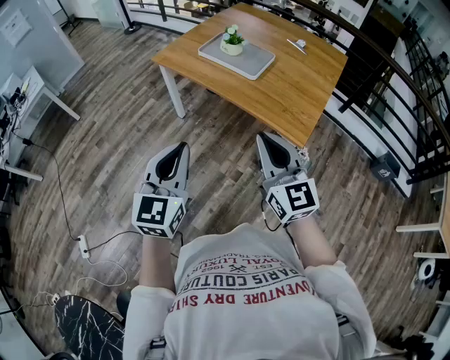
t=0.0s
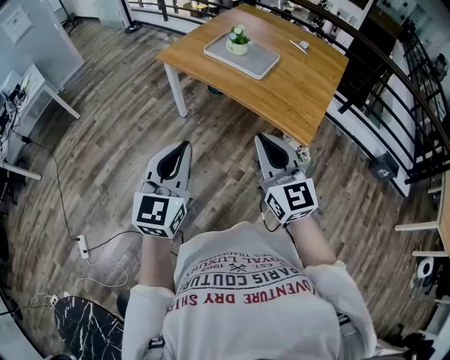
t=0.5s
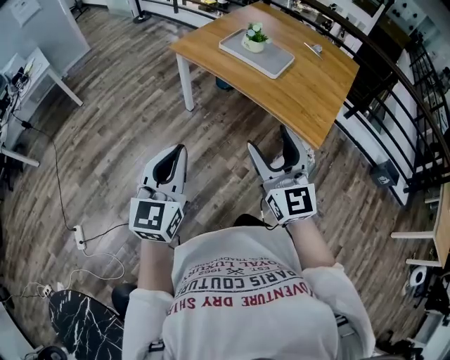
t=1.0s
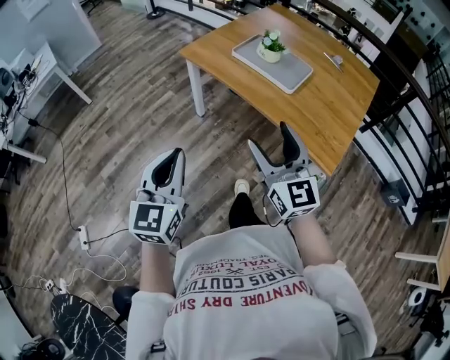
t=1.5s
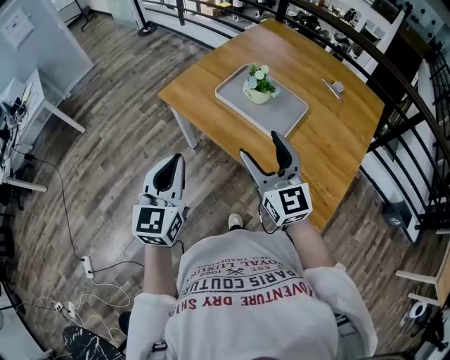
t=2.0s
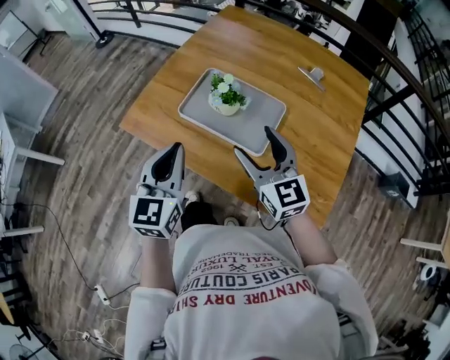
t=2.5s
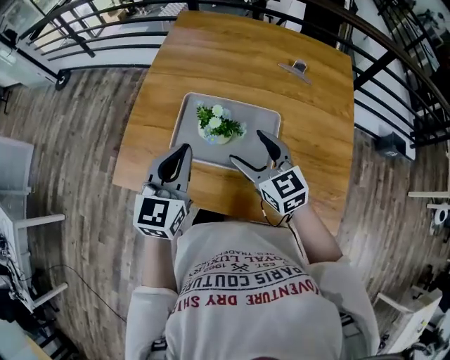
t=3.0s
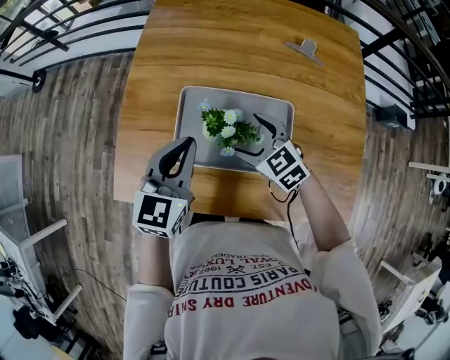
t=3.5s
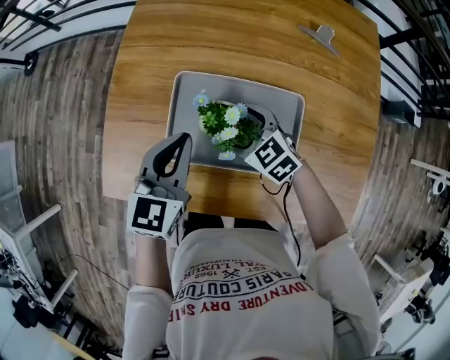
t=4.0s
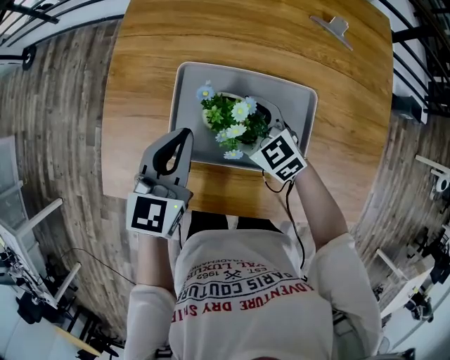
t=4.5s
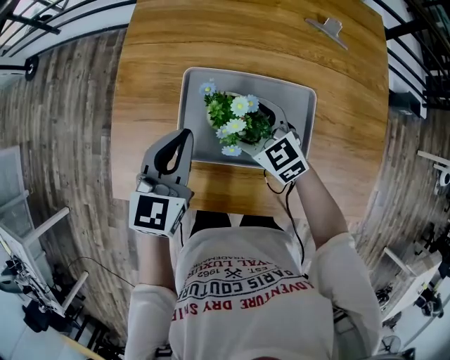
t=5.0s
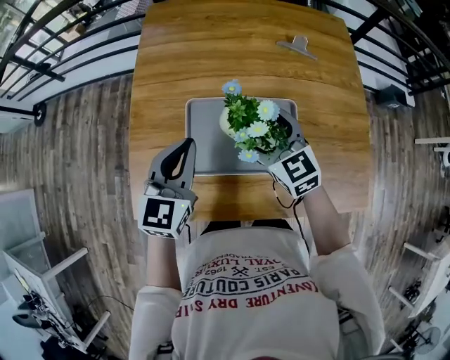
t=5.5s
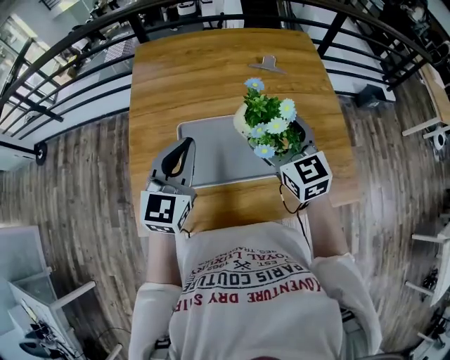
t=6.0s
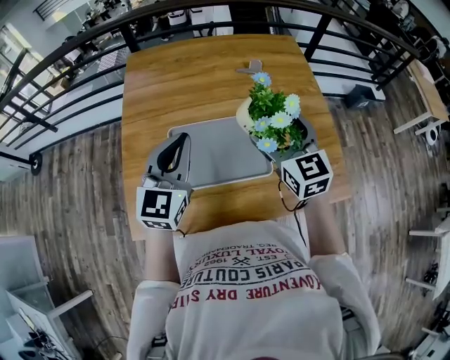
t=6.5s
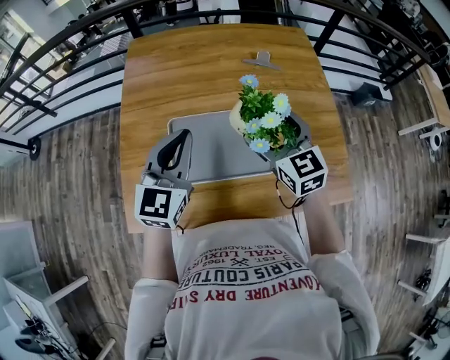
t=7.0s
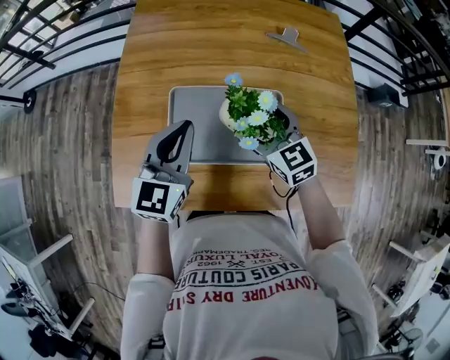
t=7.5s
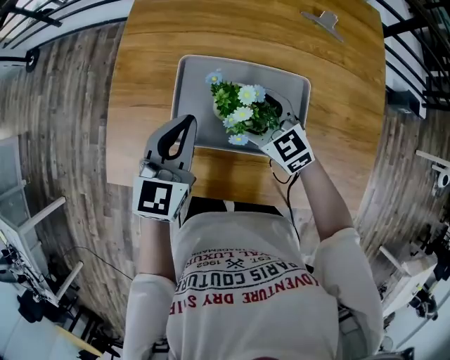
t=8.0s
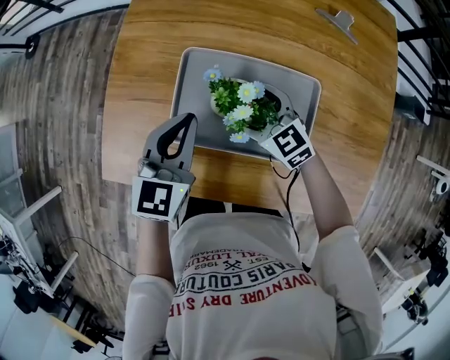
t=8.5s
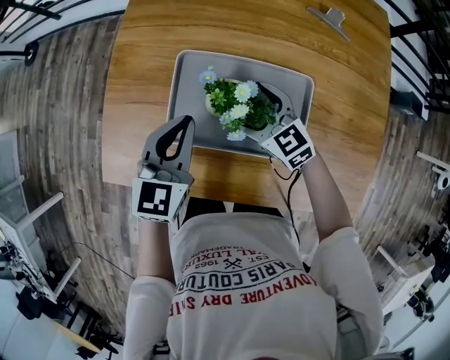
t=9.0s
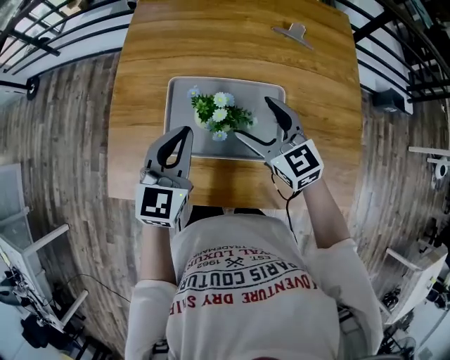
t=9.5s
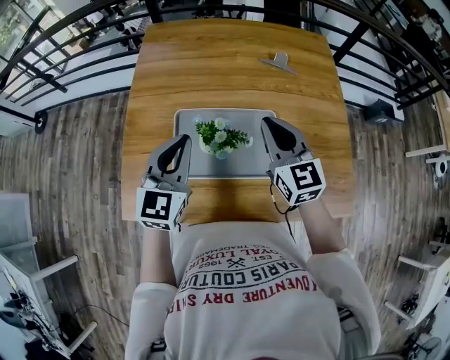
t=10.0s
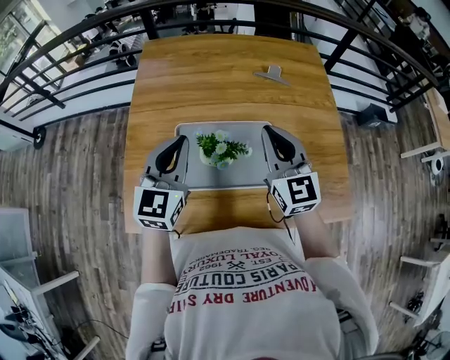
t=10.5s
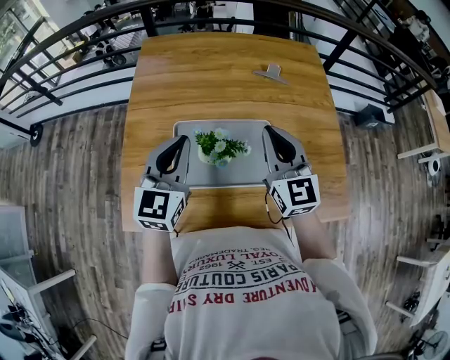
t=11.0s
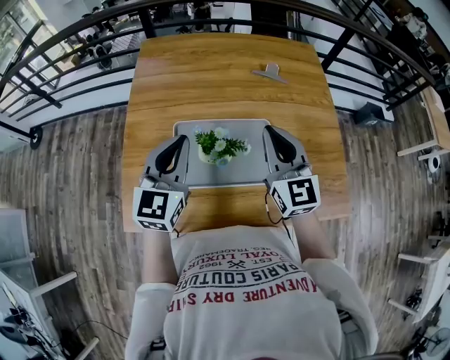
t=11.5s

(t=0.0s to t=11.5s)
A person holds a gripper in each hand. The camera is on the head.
t=0.0s - t=2.0s: Both grippers move forward, roughly 30 cm. The right gripper opens up.
t=2.0s - t=4.0s: The left gripper ends up roughly 40 cm from where it was, and turns by approximately 40 degrees, while the right gripper moves approximately 40 cm, and points its fingers some 40 degrees further downward.
t=4.0s - t=6.0s: The right gripper is displaced upward by approximately 20 cm, and turns by some 50 degrees. The left gripper shifts roughly 10 cm upward, and rotates about 20 degrees.
t=6.0s - t=7.5s: The right gripper goes approximately 10 cm downward. The left gripper goes approximately 5 cm downward.
t=7.5s - t=9.5s: The right gripper travels downward and back again, about 10 cm each way.
t=9.5s - t=11.5s: Both grippers travel together upward, roughly 10 cm. The right gripper swivels about 30 degrees, and closes up.

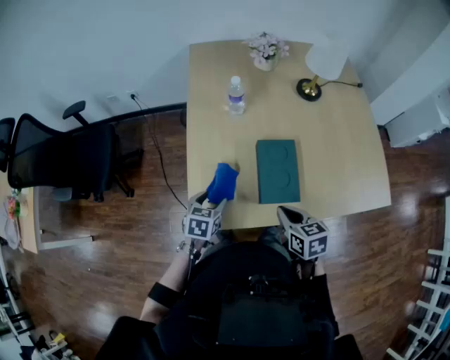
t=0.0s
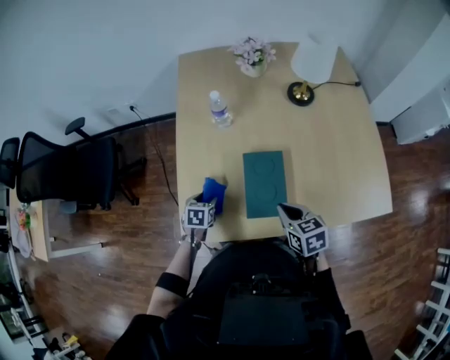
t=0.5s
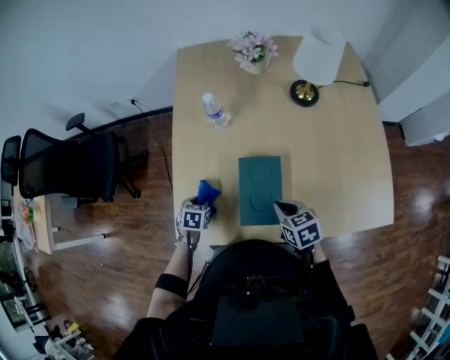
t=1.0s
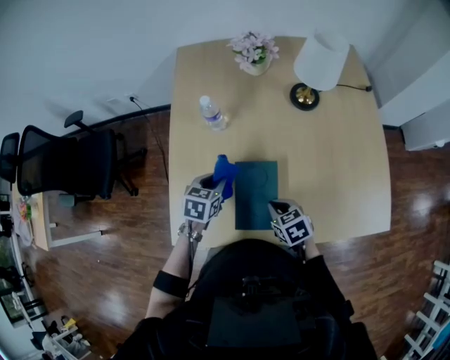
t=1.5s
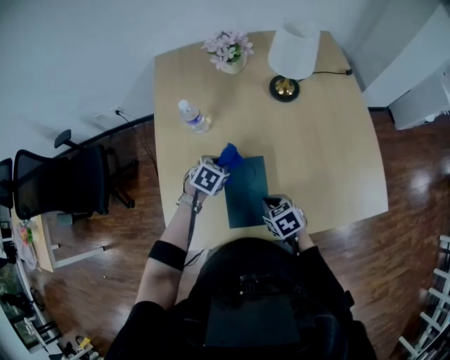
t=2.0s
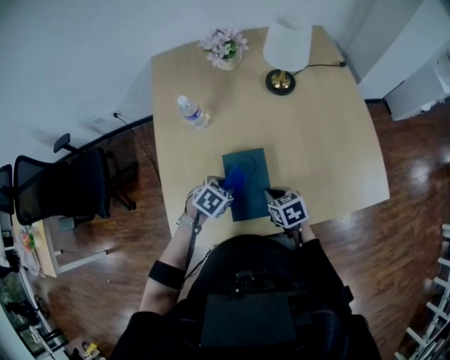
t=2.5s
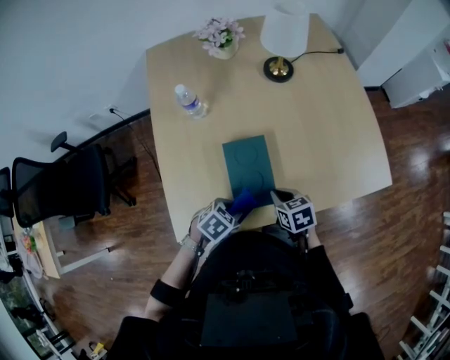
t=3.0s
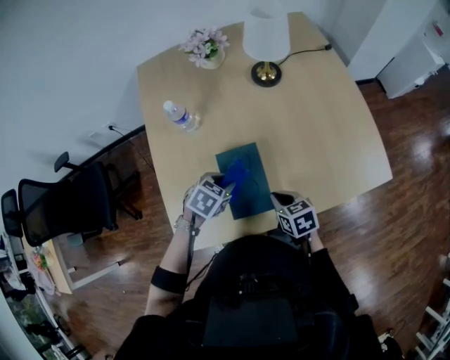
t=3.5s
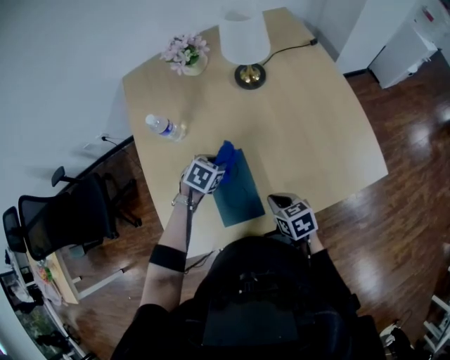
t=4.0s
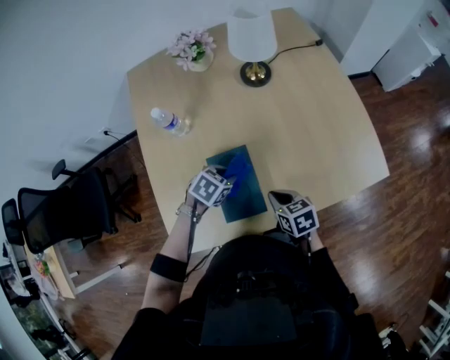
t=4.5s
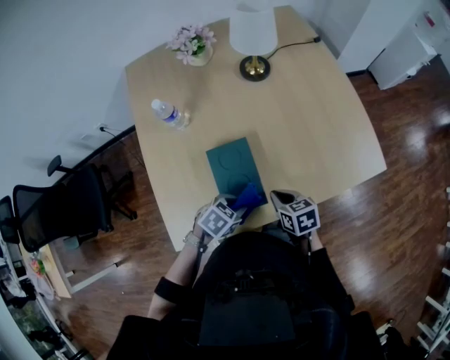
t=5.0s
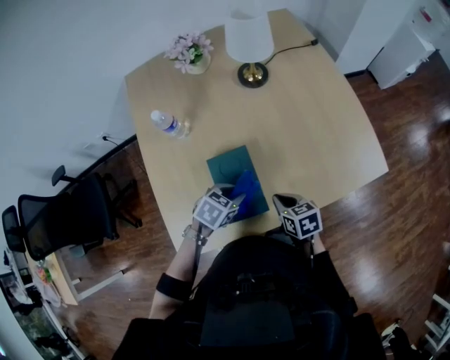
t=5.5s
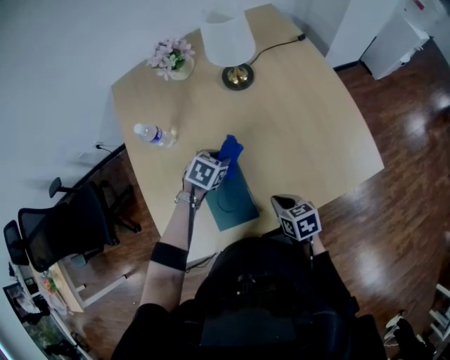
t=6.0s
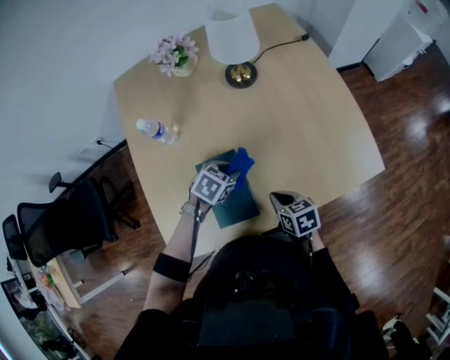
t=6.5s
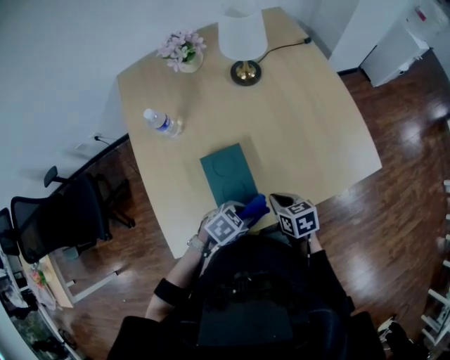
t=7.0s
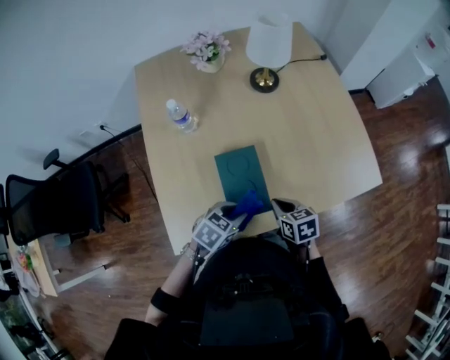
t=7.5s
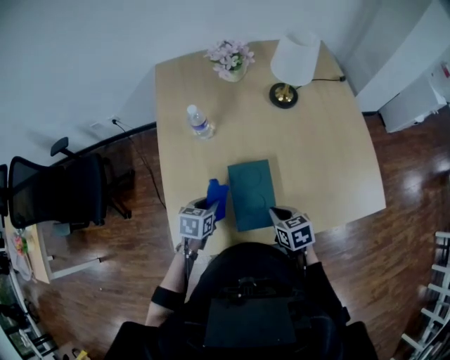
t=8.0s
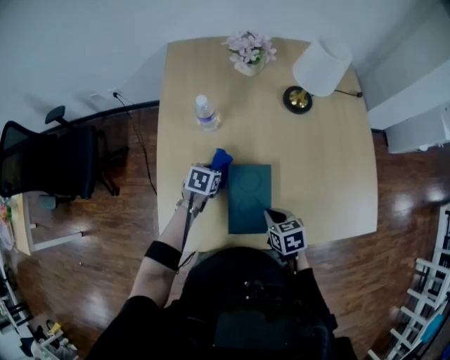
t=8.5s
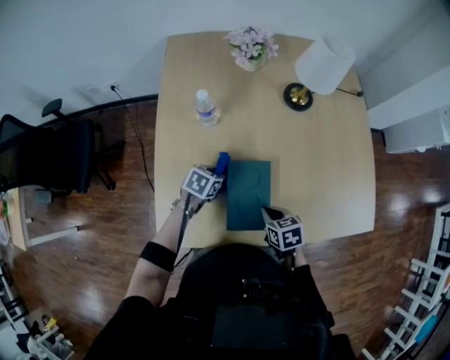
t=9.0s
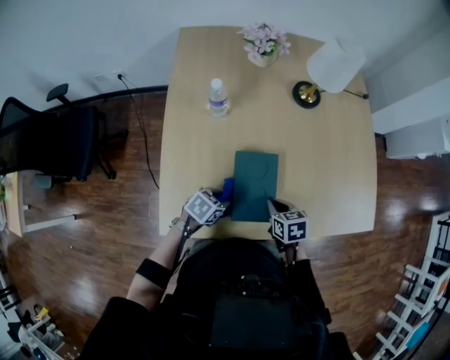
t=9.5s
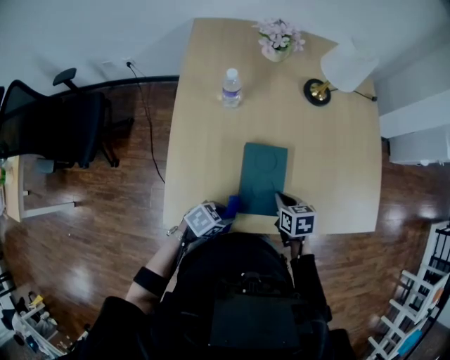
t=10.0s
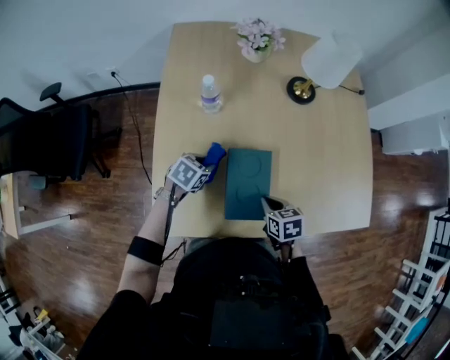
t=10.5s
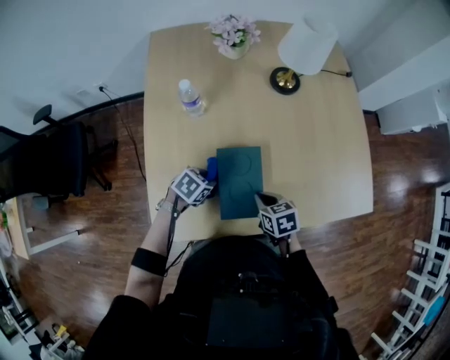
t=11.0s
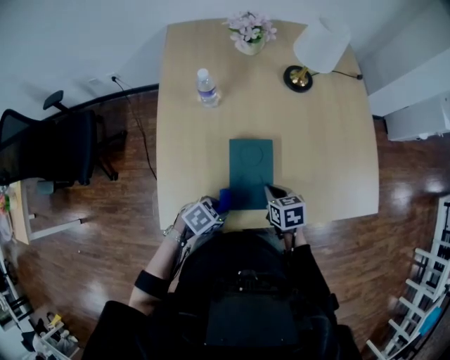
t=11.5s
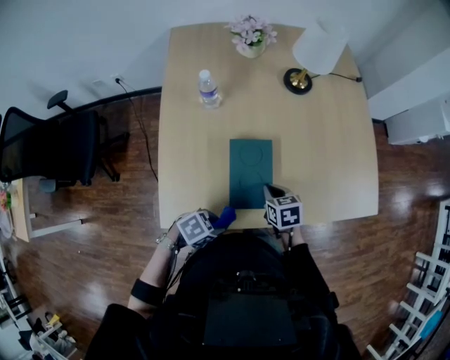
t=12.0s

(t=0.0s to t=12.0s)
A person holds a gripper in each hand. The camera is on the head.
t=0.0s - t=2.0s: The right gripper goes about 15 cm to the right, forward and downward, and rotates approximately 20 degrees; the left gripper heads to the right and forward, covering roughly 25 cm, turns by some 30 degrees, and closes its fingers.
t=2.0s - t=4.0s: The right gripper changes place by some 5 cm, and swivels some 20 degrees.
t=4.0s - t=6.0s: The left gripper travels backward and back again, approximately 20 cm each way.
t=6.0s - t=8.0s: The right gripper ends up approximately 10 cm from where it was; the left gripper moves roughly 20 cm, and swivels approximately 40 degrees.
t=8.0s - t=10.0s: The left gripper moves backward and to the right, approximately 15 cm, and swivels roughly 30 degrees.

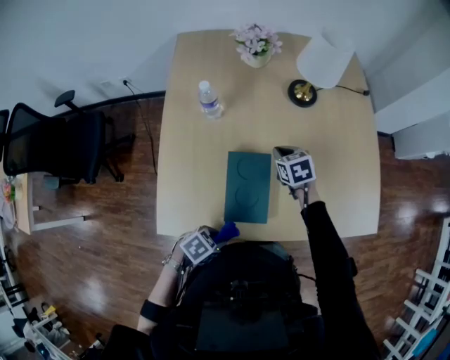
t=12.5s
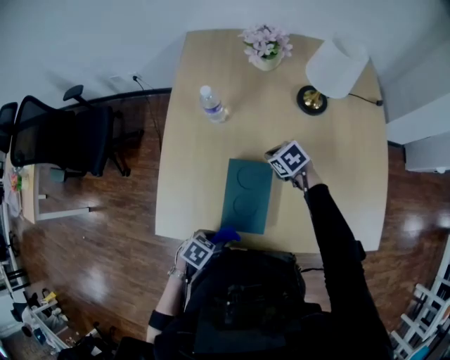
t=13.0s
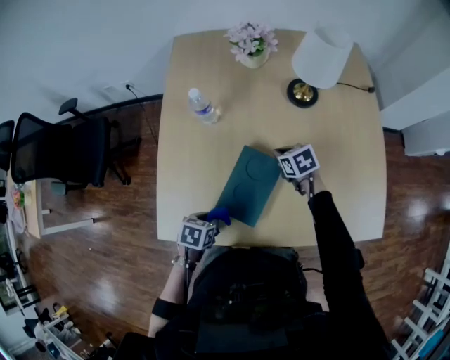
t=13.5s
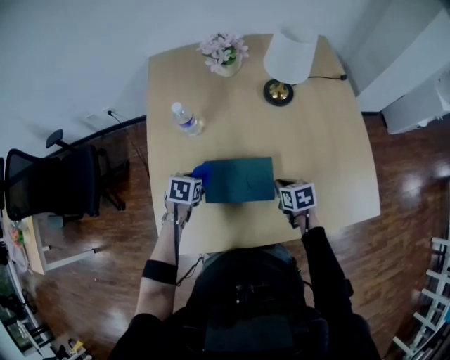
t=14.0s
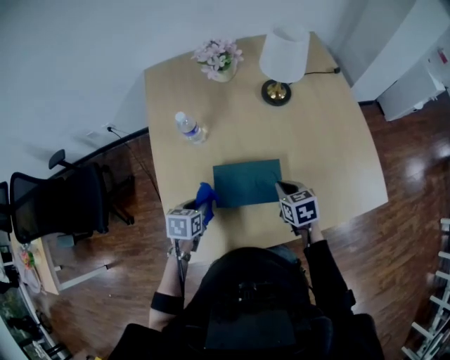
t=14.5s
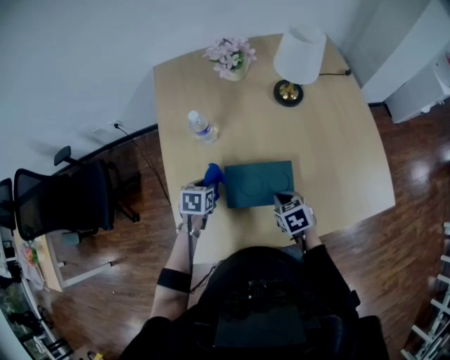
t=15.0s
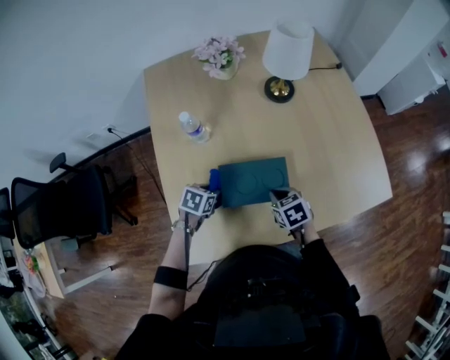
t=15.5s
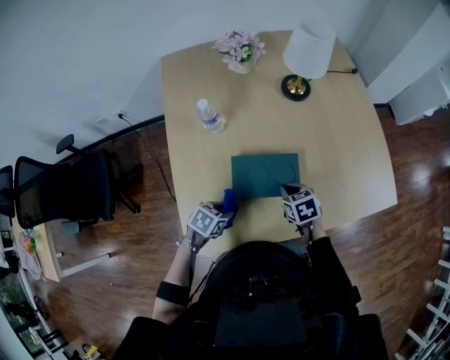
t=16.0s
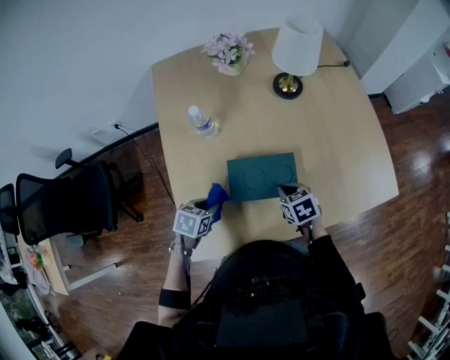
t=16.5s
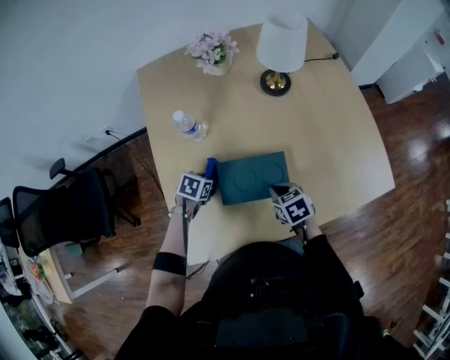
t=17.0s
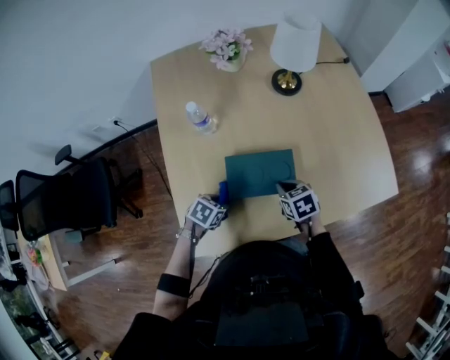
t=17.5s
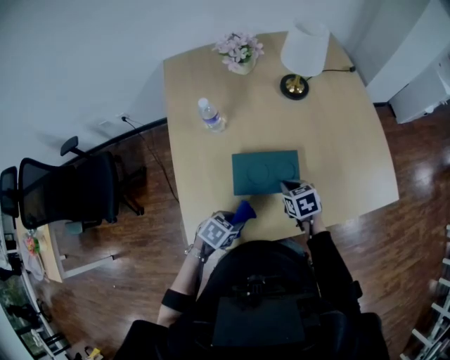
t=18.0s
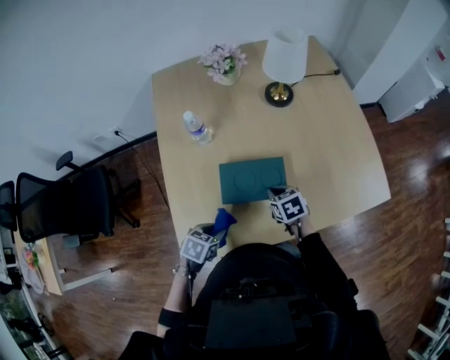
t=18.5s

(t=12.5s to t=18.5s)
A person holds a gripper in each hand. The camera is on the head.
t=12.5s - t=14.5s: The right gripper changes place by approximately 10 cm. Meanwhile the left gripper ends up roughly 25 cm from where it was, and turns by about 40 degrees.
t=14.5s - t=16.5s: The left gripper swings forward and backward, about 15 cm each way, with 2 reversals. The right gripper changes place by approximately 5 cm.
t=16.5s - t=18.5s: The left gripper travels backward and to the right by about 10 cm.
